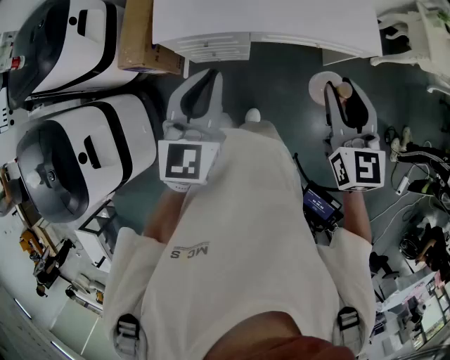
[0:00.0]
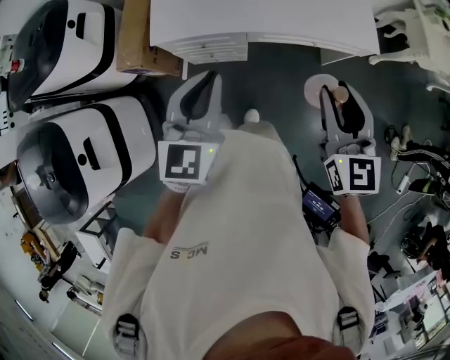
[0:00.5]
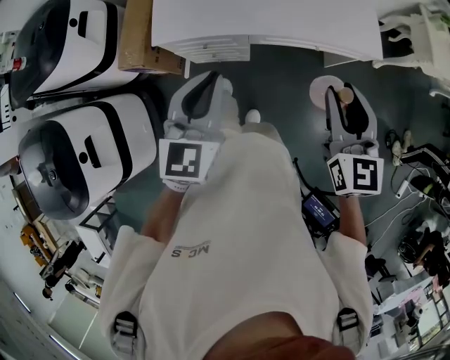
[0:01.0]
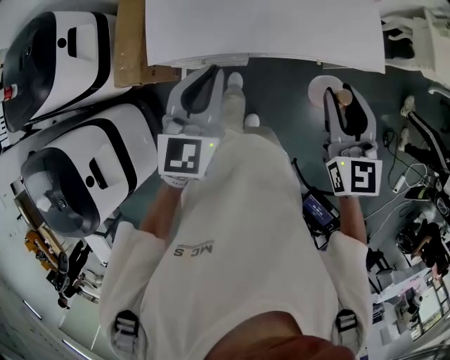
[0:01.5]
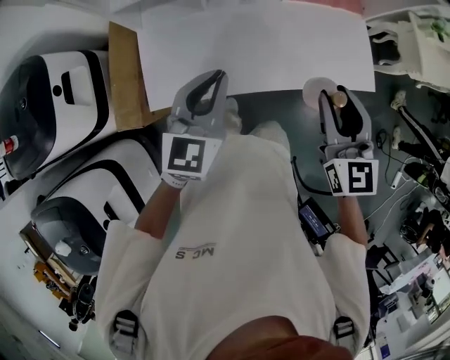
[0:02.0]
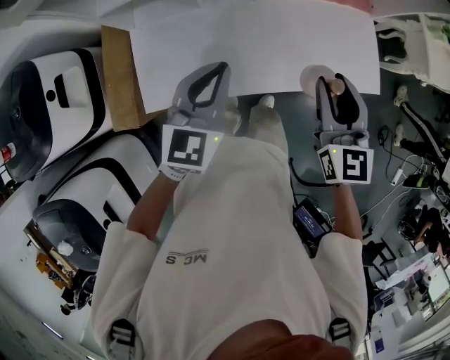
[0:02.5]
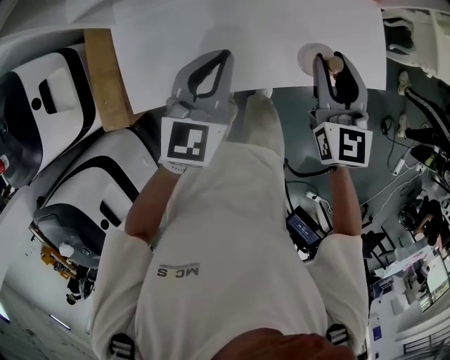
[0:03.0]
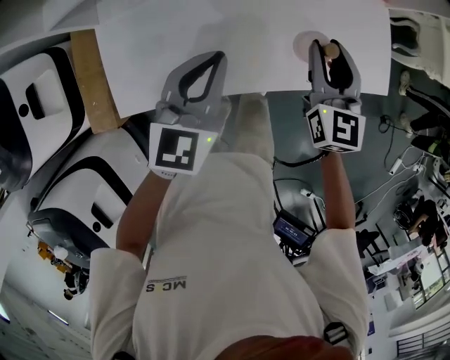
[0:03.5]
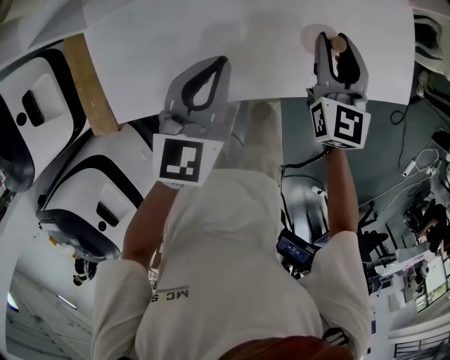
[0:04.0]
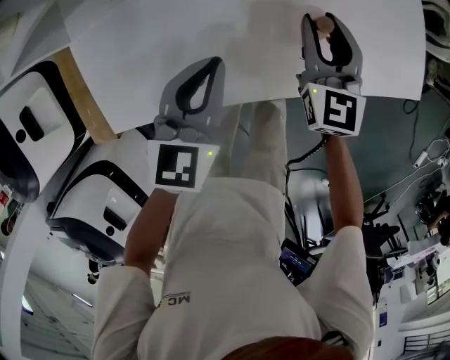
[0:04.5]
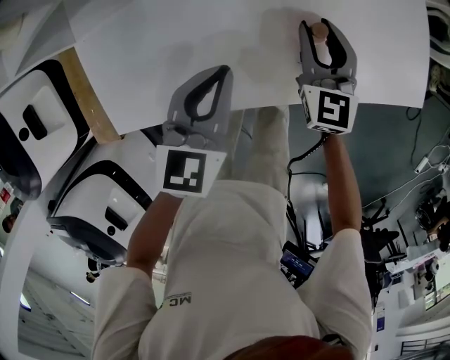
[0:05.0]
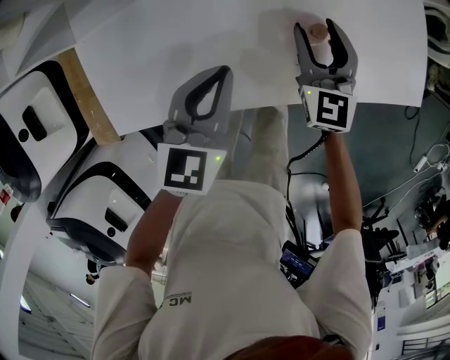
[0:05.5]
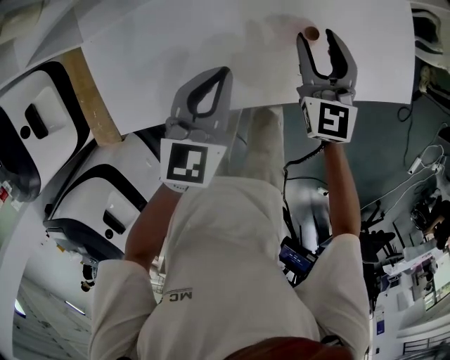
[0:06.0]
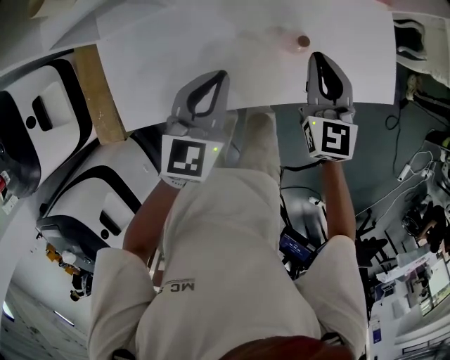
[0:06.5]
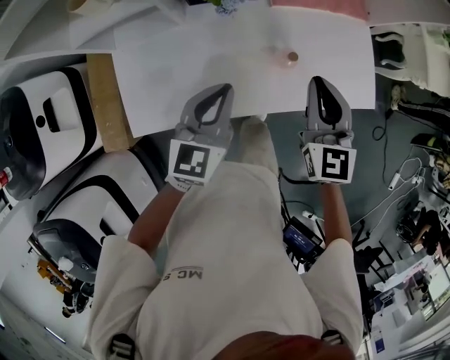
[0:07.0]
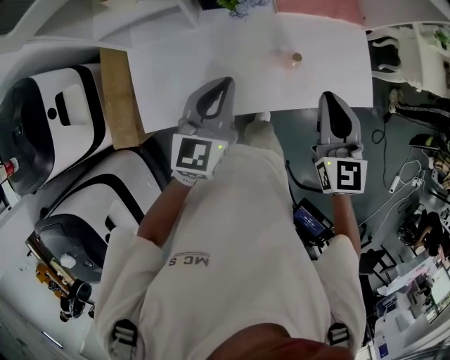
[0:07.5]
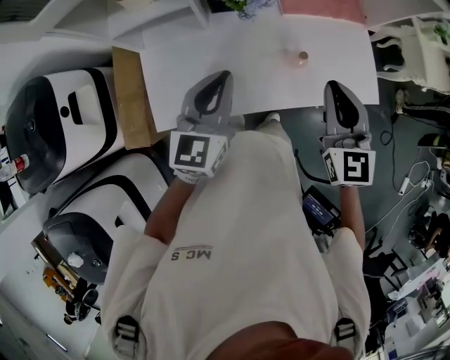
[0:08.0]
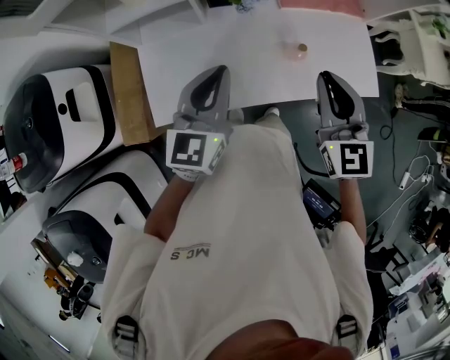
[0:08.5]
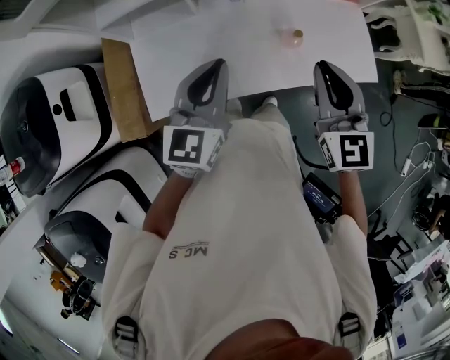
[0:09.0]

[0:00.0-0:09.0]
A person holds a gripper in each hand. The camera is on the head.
0:00.0 to 0:02.0: The two grippers go roughly 30 cm forward.
0:02.0 to 0:04.5: Both grippers travel together downward and forward, roughly 35 cm.
0:04.5 to 0:07.0: Both grippers move upward, approximately 20 cm. The right gripper closes its fingers.
0:07.0 to 0:09.0: The left gripper shifts approximately 15 cm upward, backward and to the left. The right gripper heads upward and backward, covering some 15 cm.

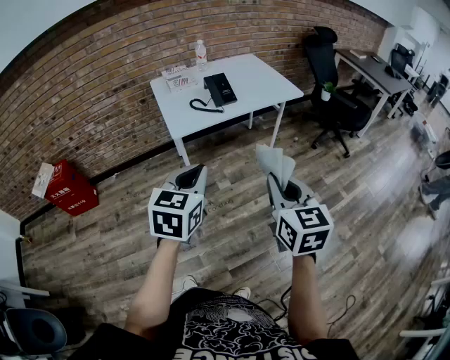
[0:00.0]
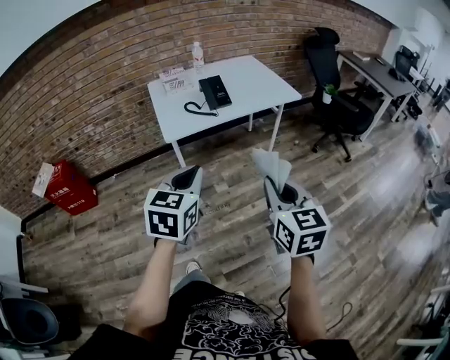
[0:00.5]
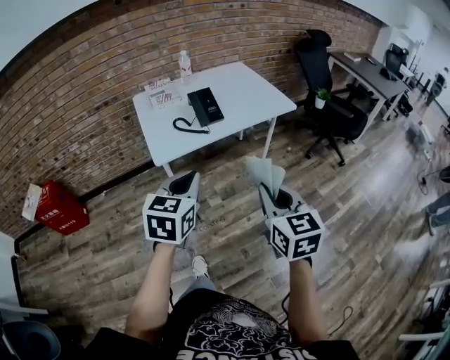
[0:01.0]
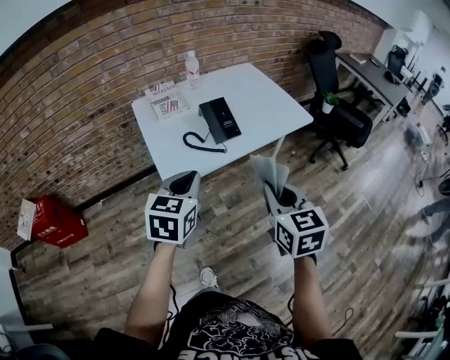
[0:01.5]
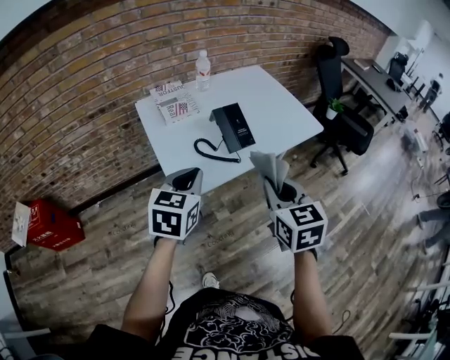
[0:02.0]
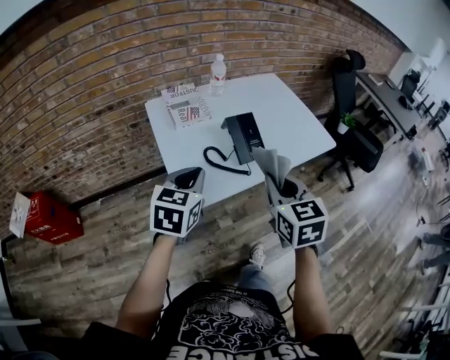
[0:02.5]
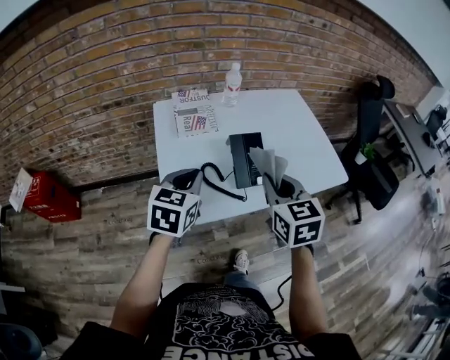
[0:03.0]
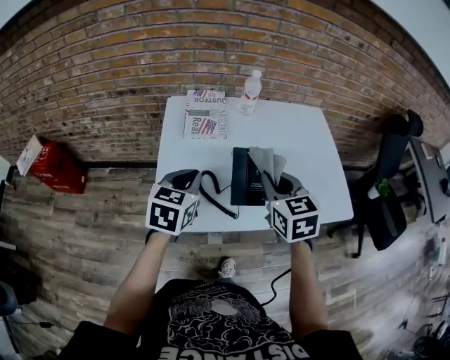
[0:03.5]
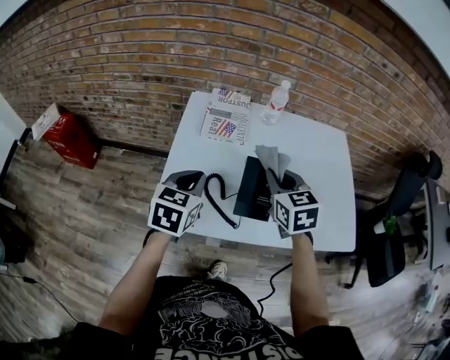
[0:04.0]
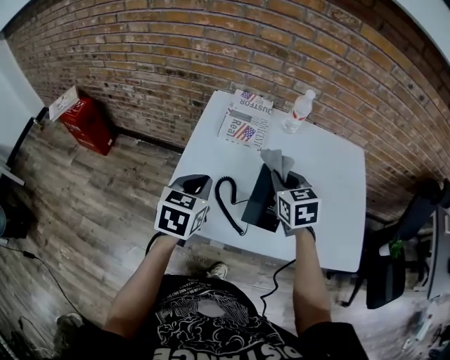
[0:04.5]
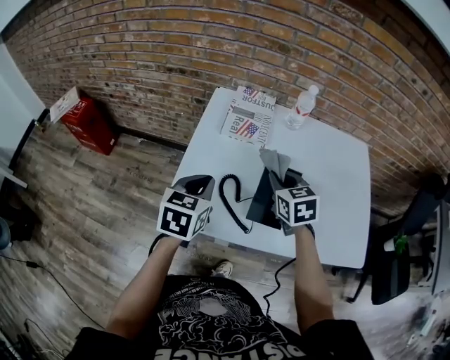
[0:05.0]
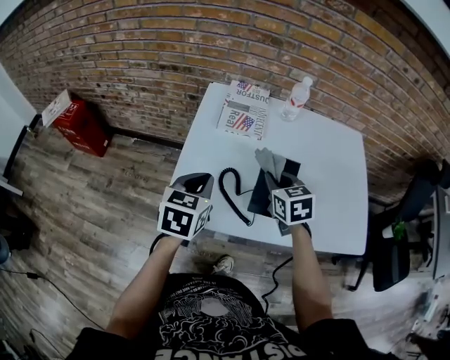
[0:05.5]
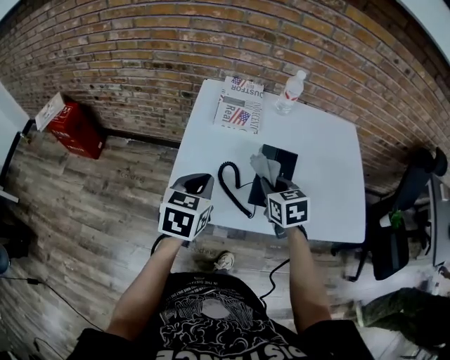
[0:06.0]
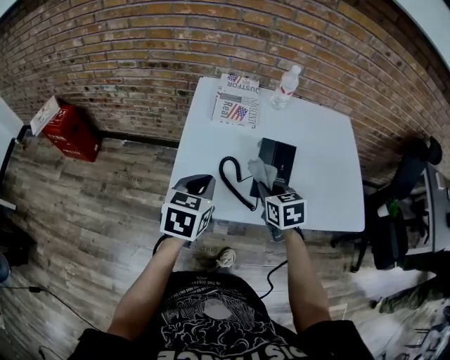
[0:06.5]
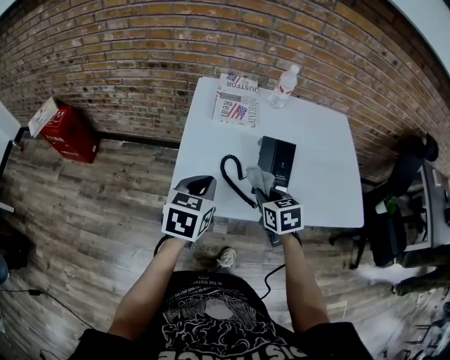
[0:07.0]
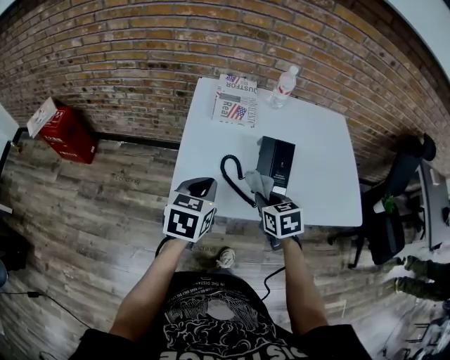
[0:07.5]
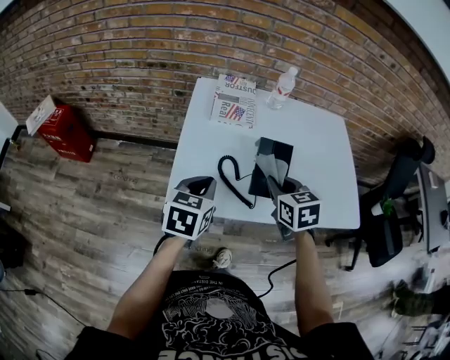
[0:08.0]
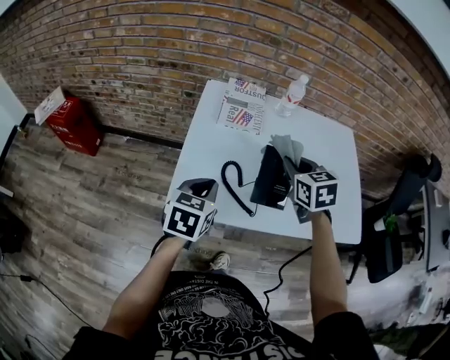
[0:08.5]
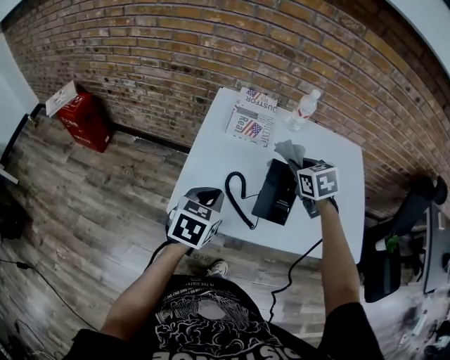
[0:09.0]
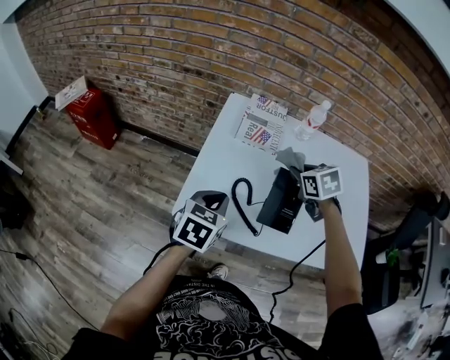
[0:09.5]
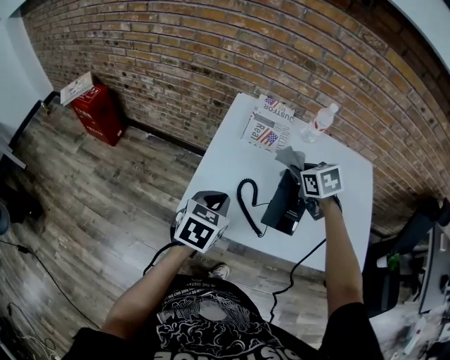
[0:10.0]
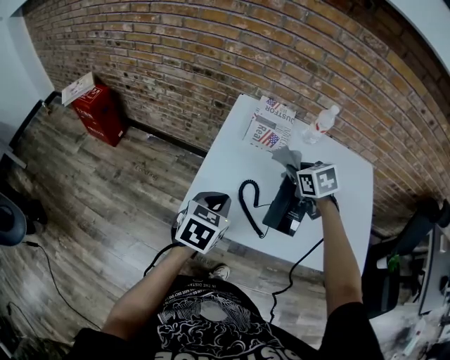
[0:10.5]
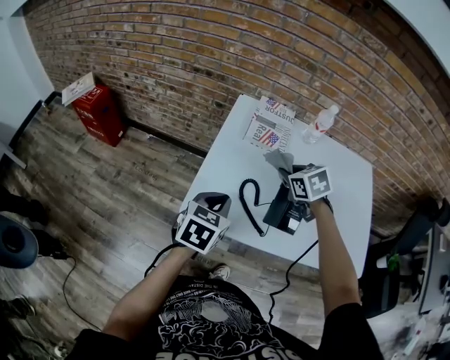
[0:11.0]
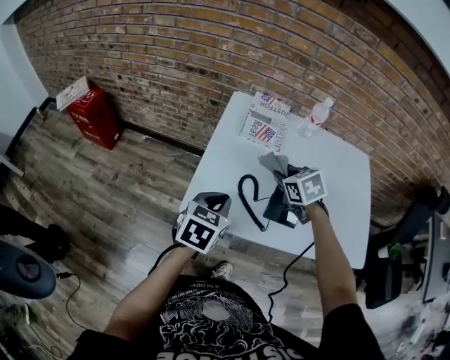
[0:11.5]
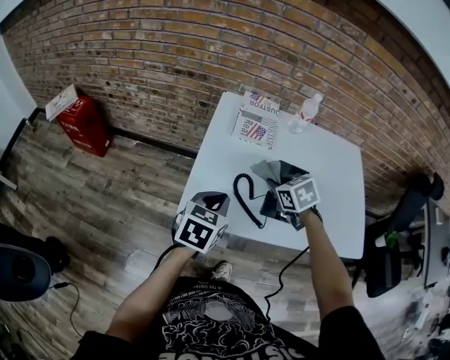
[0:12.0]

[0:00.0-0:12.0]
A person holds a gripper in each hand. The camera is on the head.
0:00.0 to 0:02.0: The grippers both shift forward by about 35 cm.
0:02.0 to 0:04.0: The right gripper ends up some 35 cm from where it was, and changes its angle by some 40 degrees, while the left gripper changes place by roughly 20 cm, and changes its angle by about 30 degrees.
0:04.0 to 0:06.0: The right gripper goes approximately 10 cm downward; the left gripper changes place by some 5 cm.
0:06.0 to 0:08.0: The right gripper ends up approximately 5 cm from where it was.
0:08.0 to 0:10.0: The right gripper heads forward, covering some 15 cm, and swivels about 20 degrees.
0:10.0 to 0:12.0: The right gripper travels backward by some 5 cm.

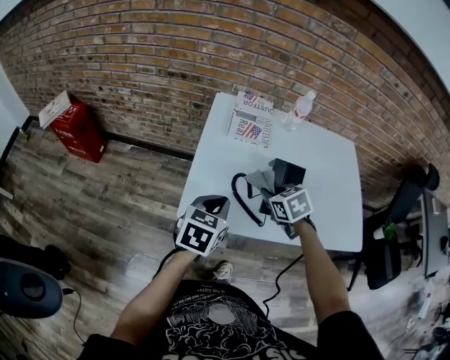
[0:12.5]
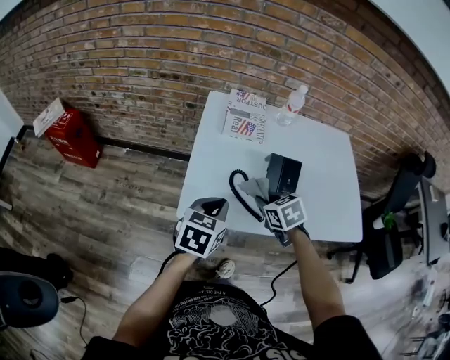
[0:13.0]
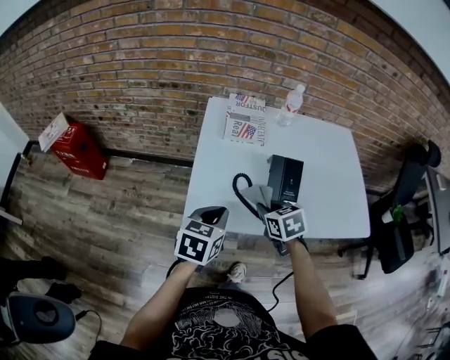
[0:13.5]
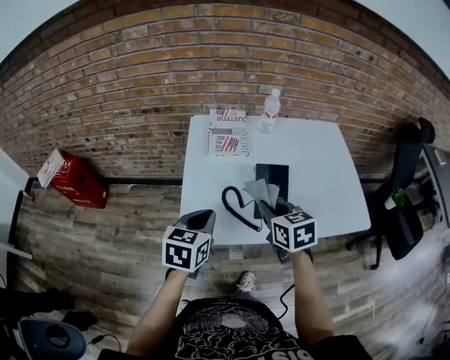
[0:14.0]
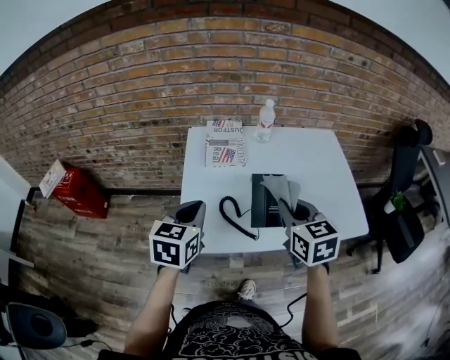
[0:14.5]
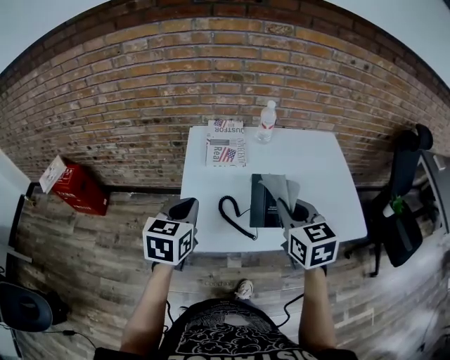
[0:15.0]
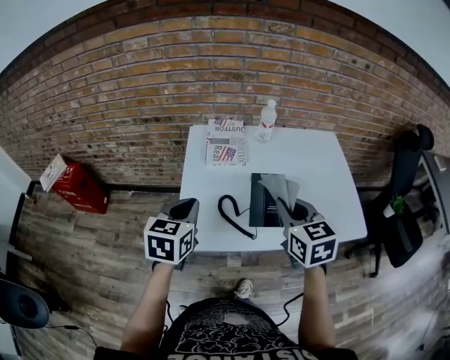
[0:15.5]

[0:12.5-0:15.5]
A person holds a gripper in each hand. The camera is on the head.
0:12.5 to 0:14.0: The right gripper goes some 10 cm upward and backward, and turns by approximately 30 degrees.
0:14.0 to 0:15.5: The left gripper shifts roughly 5 cm upward. The right gripper is displaced upward by some 10 cm.

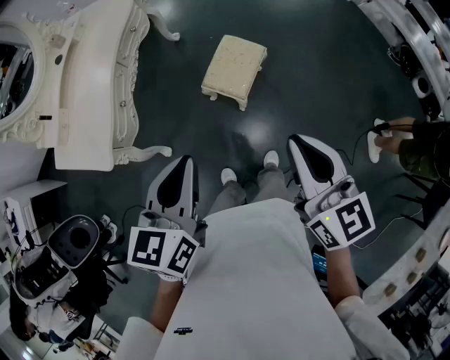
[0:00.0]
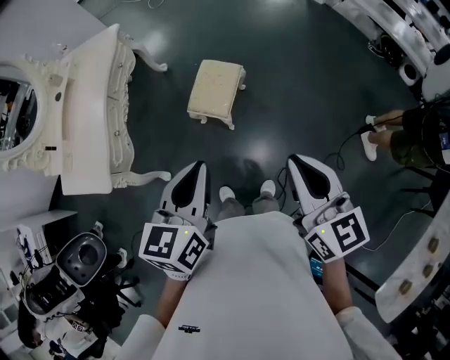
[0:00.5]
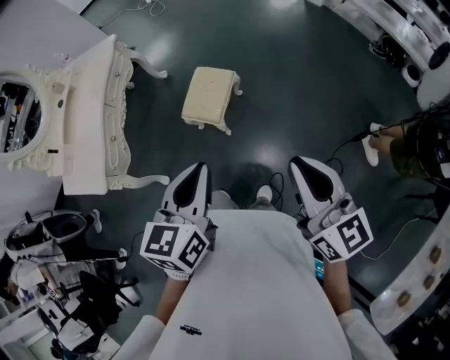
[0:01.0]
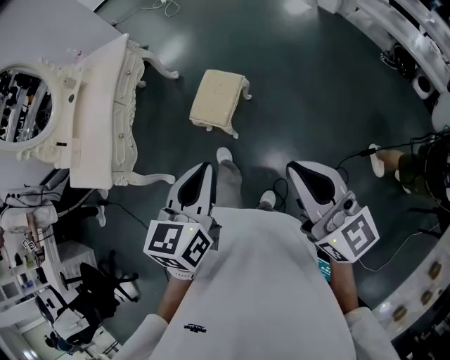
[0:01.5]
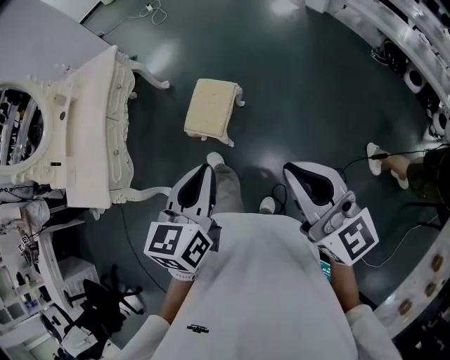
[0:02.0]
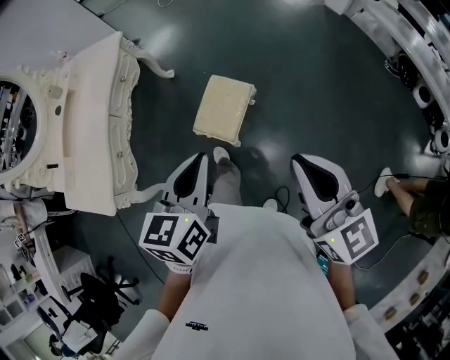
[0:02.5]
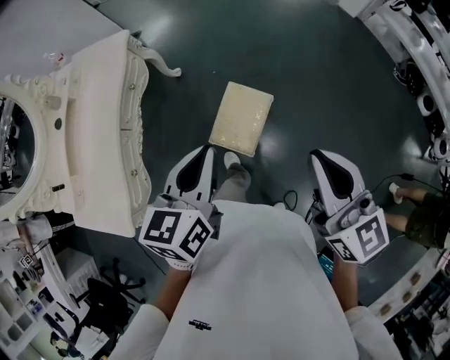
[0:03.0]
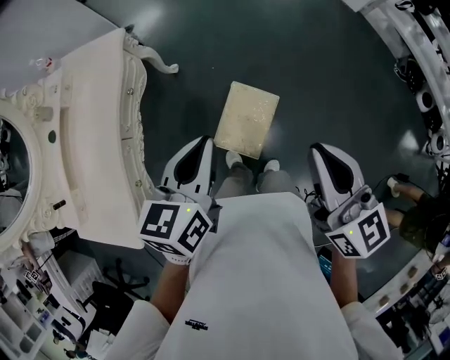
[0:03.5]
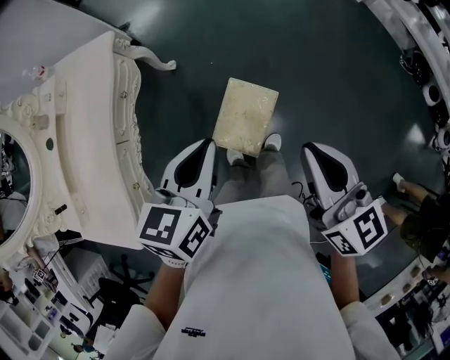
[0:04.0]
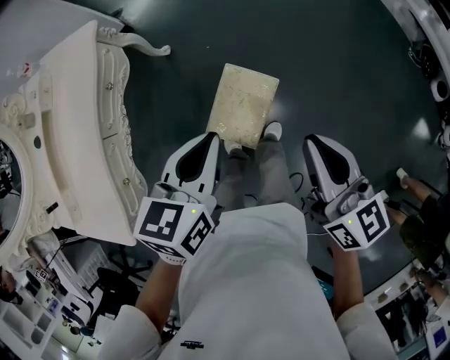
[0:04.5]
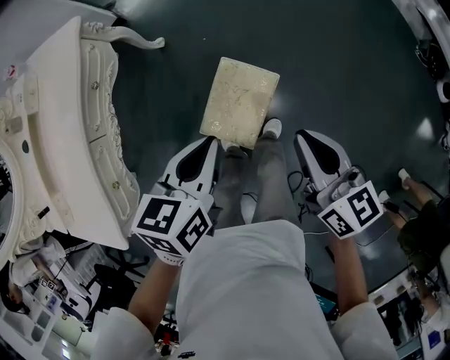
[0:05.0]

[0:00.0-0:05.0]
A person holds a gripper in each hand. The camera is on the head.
0:00.0 to 0:02.5: The right gripper moves to the right and forward, some 15 cm. The left gripper shifts some 20 cm forward and to the right.
0:02.5 to 0:05.0: The two grippers go approximately 35 cm forward and downward. The left gripper turns by roughly 20 degrees; the right gripper swivels roughly 30 degrees.
